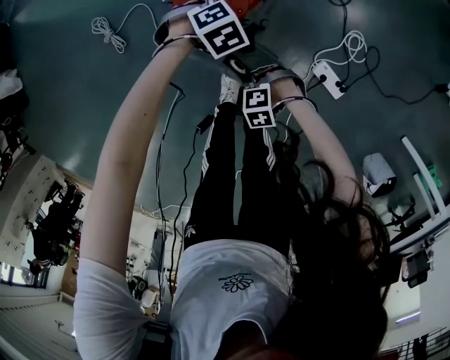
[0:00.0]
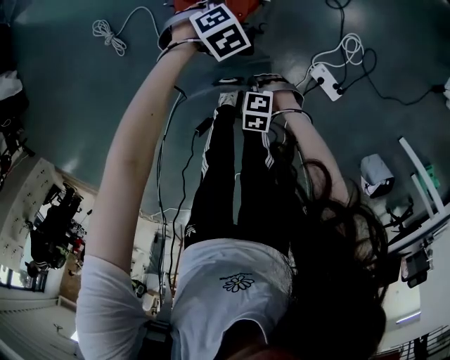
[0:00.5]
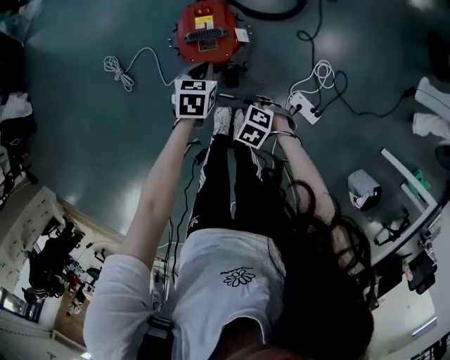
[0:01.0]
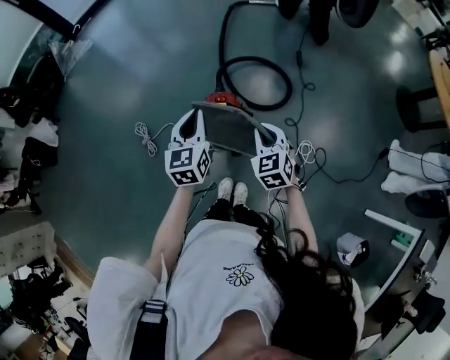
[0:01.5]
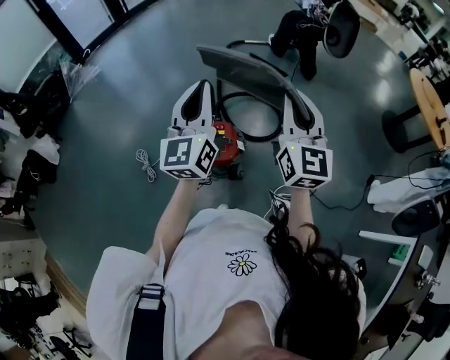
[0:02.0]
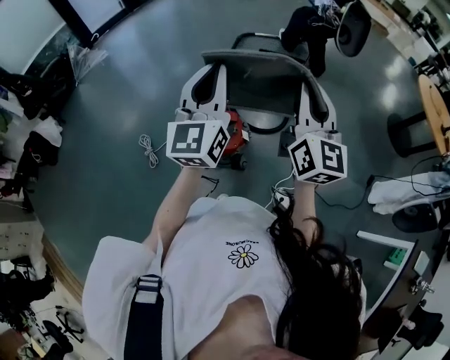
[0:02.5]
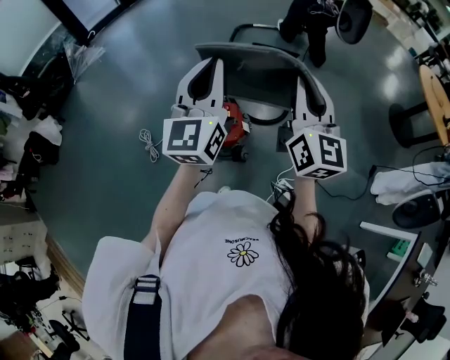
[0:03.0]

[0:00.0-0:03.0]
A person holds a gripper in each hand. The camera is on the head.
0.0 to 1.5 s: Both grippers move upward, some 50 cm. The left gripper tips its fingers upward by approximately 60 degrees. Meanwhile the right gripper tilts its fingers about 40 degrees upward.
1.5 to 3.0 s: The grippers both shift upward by some 30 cm. The right gripper points its fingers some 50 degrees further upward. Meanwhile the left gripper angles its fingers upward, by approximately 30 degrees.

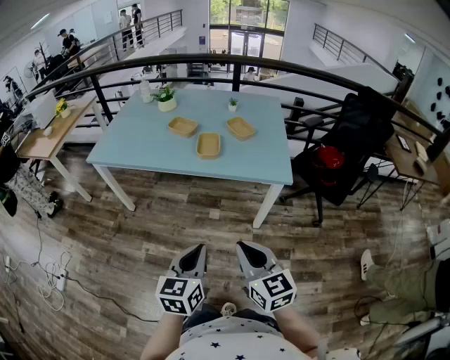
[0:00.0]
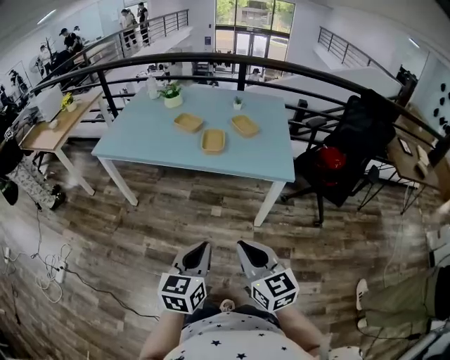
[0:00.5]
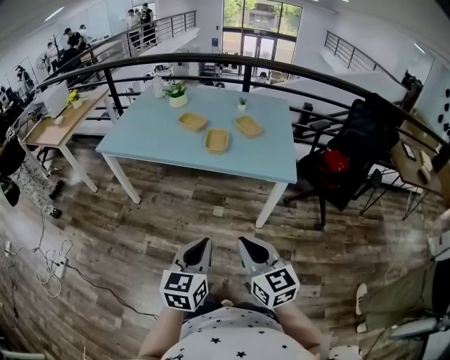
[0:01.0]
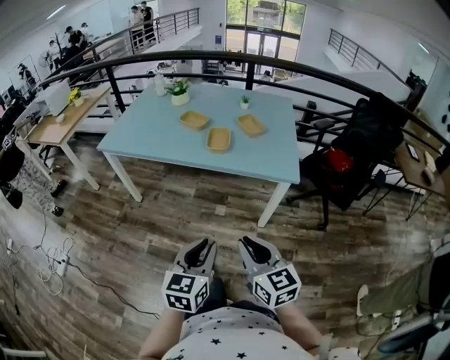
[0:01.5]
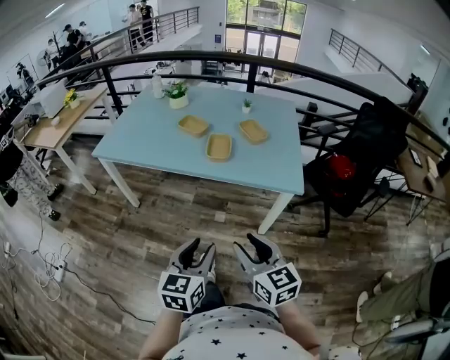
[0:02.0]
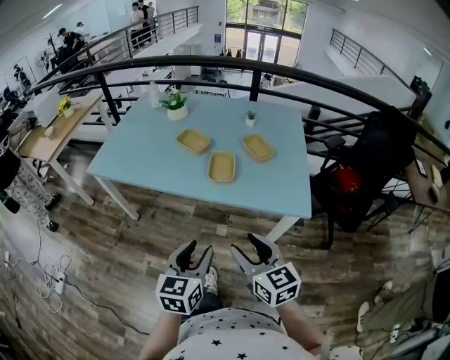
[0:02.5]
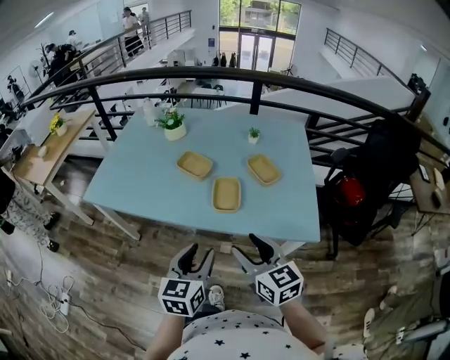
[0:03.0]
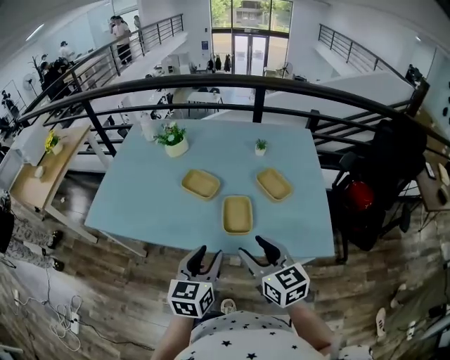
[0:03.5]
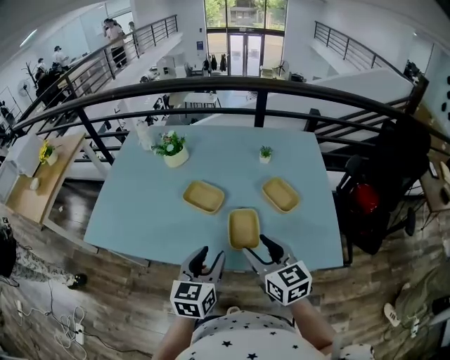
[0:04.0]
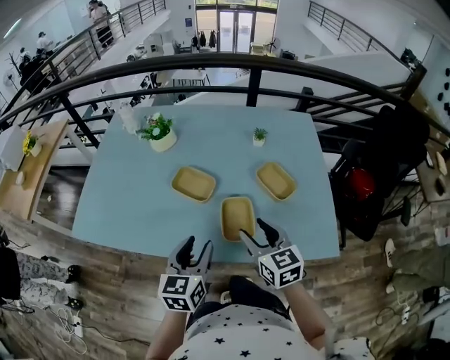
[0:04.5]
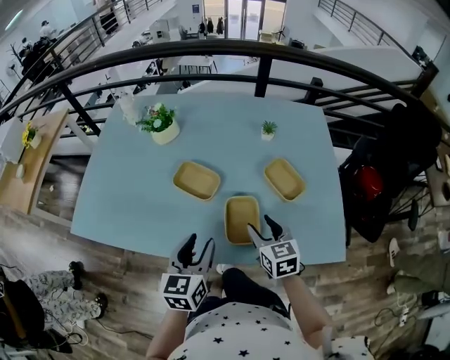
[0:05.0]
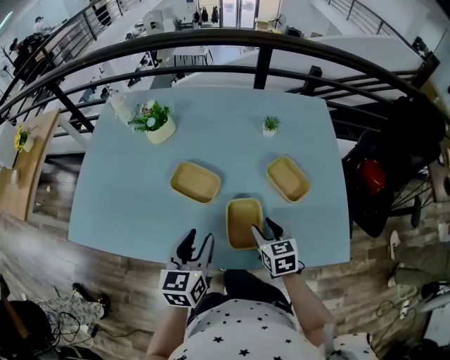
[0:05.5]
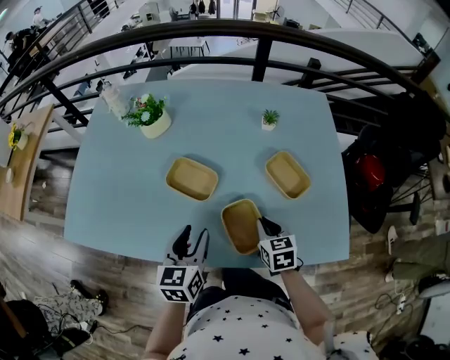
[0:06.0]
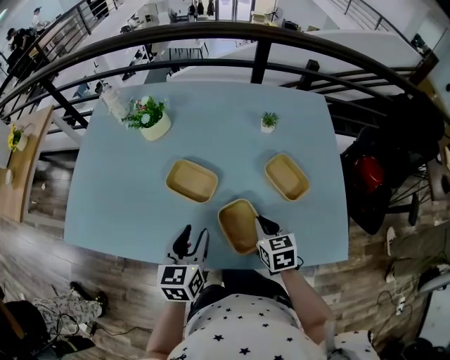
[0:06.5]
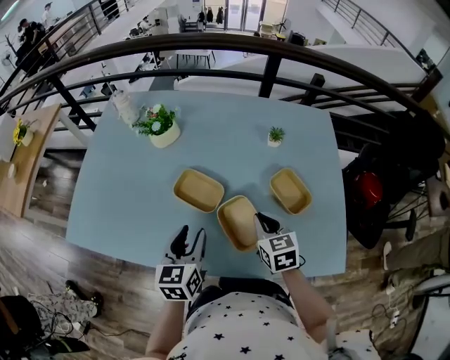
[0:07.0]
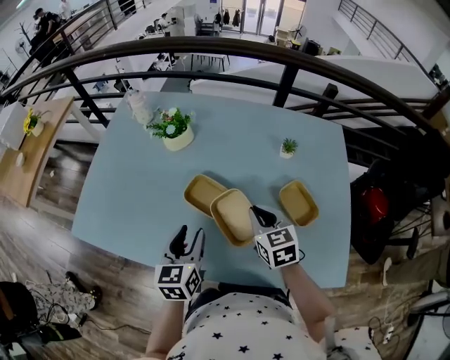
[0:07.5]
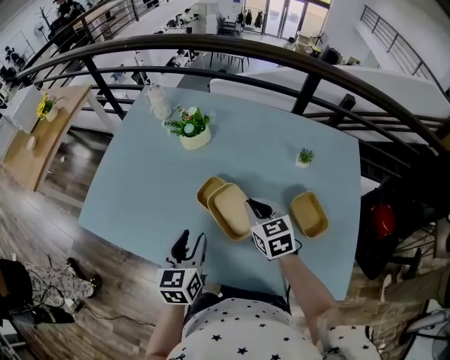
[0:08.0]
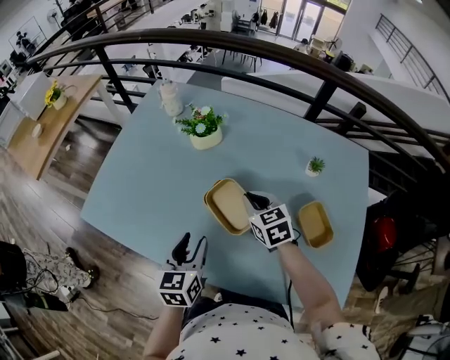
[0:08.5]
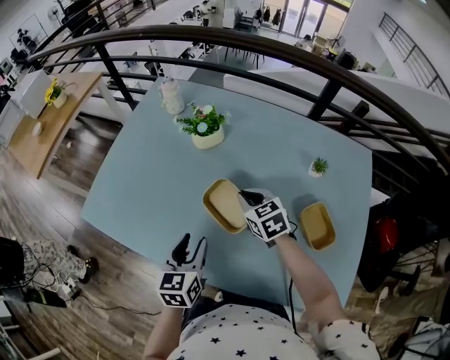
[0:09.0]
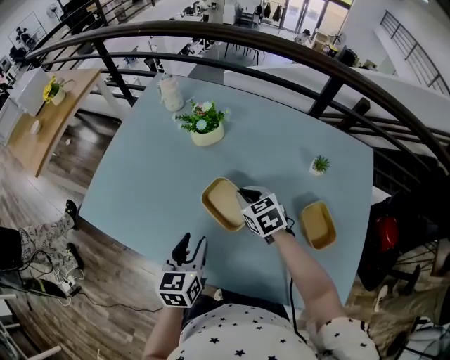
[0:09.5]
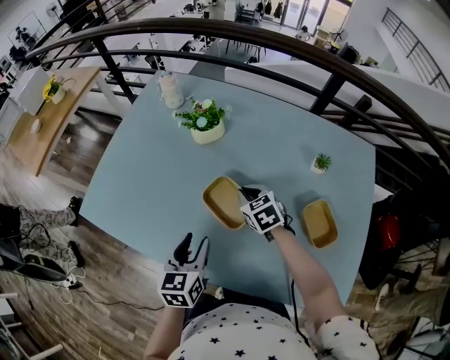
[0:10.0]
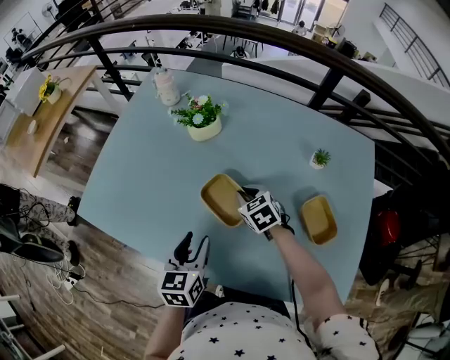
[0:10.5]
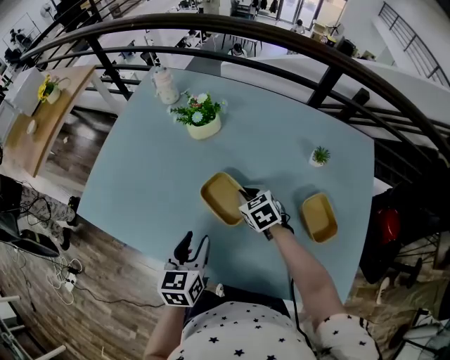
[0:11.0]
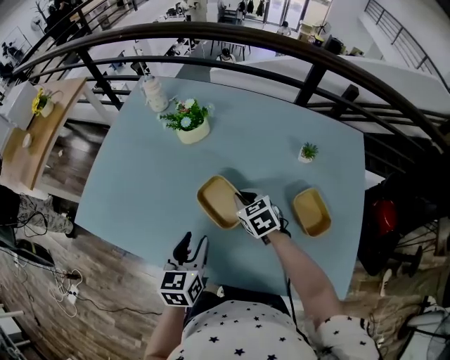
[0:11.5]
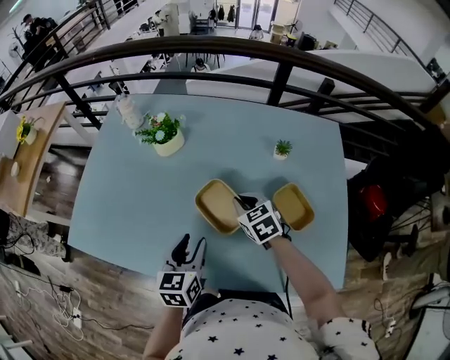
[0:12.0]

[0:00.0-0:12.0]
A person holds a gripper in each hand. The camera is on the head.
0.0 to 2.0 s: The right gripper shifts roughly 5 cm forward, and opens its fingers. The left gripper opens up.
2.0 to 4.0 s: The two grippers travel together, forward, some 40 cm.
4.0 to 6.0 s: The left gripper is displaced forward and downward by some 15 cm. The right gripper travels downward and forward by approximately 20 cm, changes its angle by roughly 30 degrees, and closes up.
6.0 to 8.0 s: The left gripper is displaced to the left by about 5 cm. The right gripper travels forward, to the left and upward by some 20 cm, and rotates about 20 degrees.
8.0 to 10.0 s: The right gripper goes roughly 10 cm downward and forward.
10.0 to 12.0 s: The right gripper travels to the right and backward by about 10 cm; the left gripper moves to the right, some 5 cm.

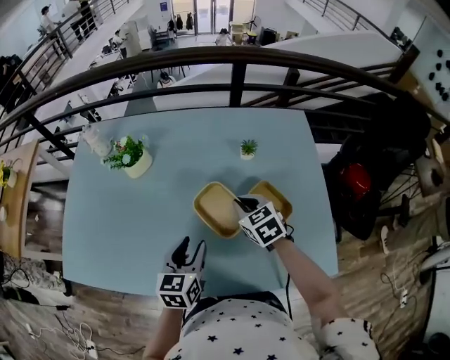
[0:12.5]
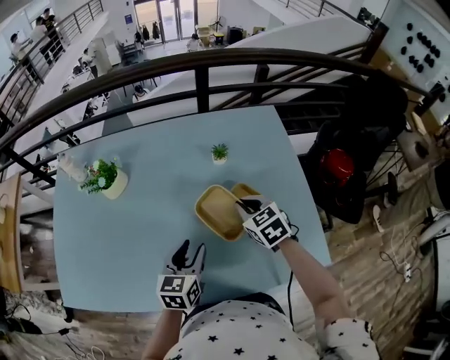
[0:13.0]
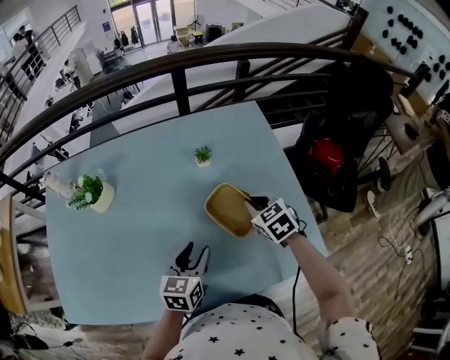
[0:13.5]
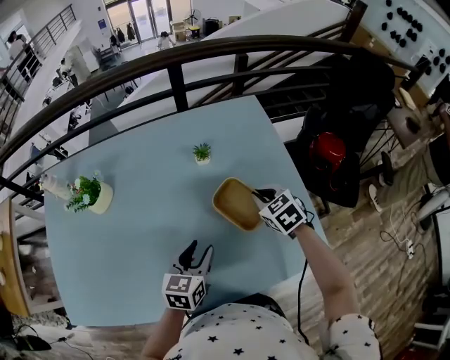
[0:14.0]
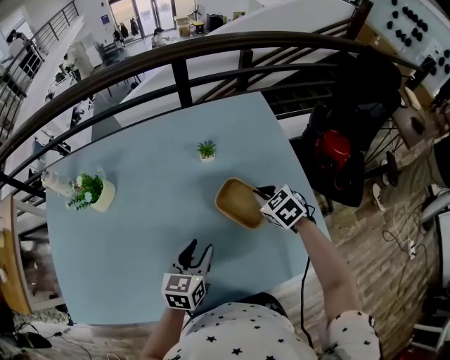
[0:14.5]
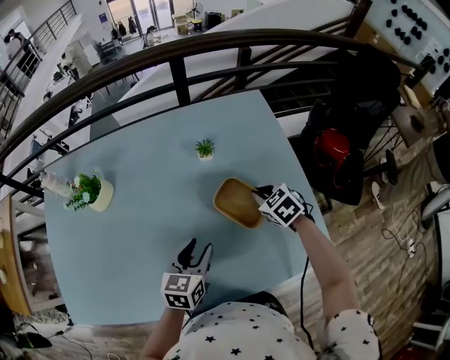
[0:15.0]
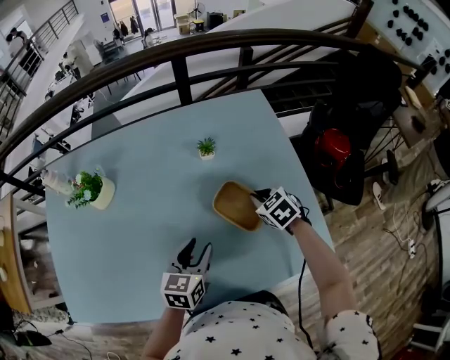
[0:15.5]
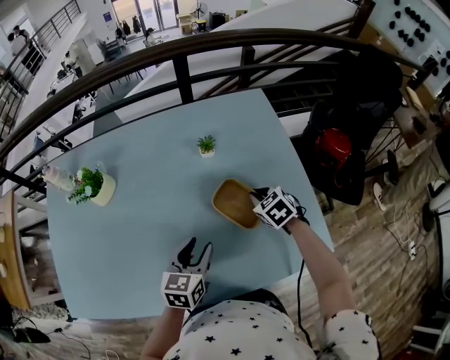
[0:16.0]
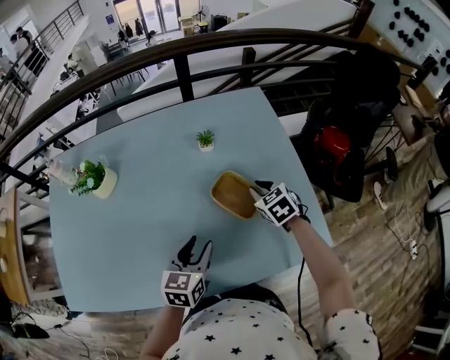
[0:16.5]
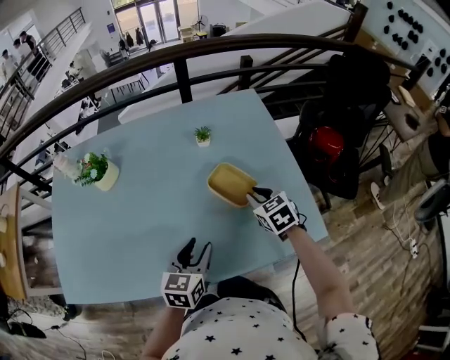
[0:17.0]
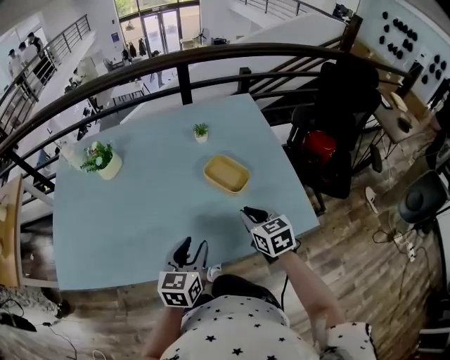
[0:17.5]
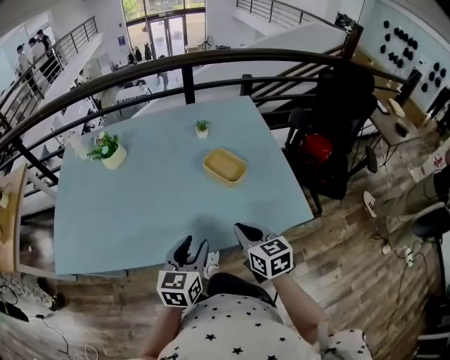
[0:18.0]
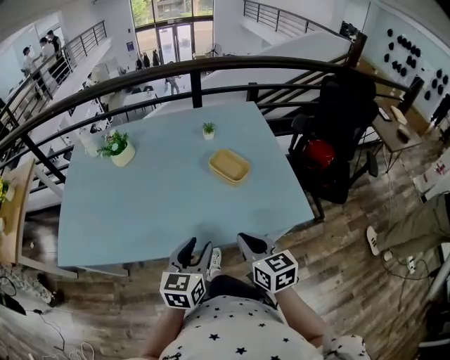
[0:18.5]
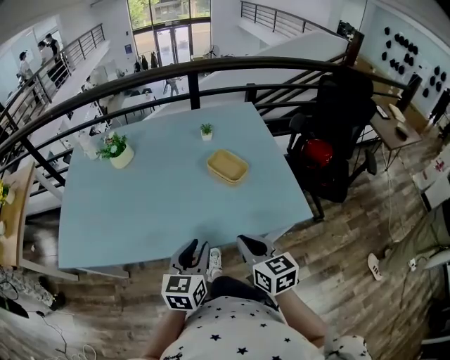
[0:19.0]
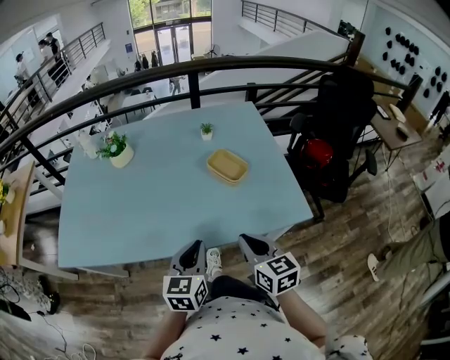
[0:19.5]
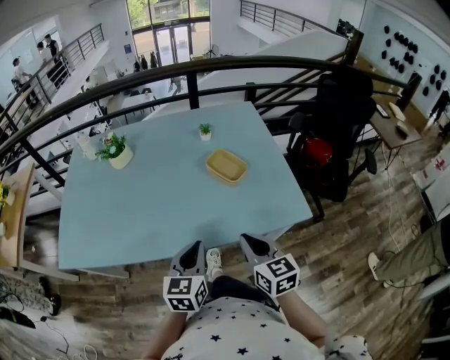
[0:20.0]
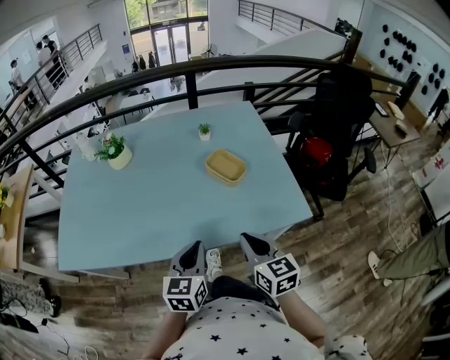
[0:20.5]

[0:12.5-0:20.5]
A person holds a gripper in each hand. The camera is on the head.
12.5 to 14.5 s: The right gripper heads to the right, covering some 15 cm; the left gripper goes approximately 10 cm to the right, and turns by about 20 degrees.
14.5 to 16.5 s: There are only small adjustments of the grippers.
16.5 to 18.5 s: The right gripper travels backward by some 35 cm, and turns by about 30 degrees. Meanwhile the left gripper shifts approximately 20 cm backward.
18.5 to 20.5 s: The left gripper closes up.

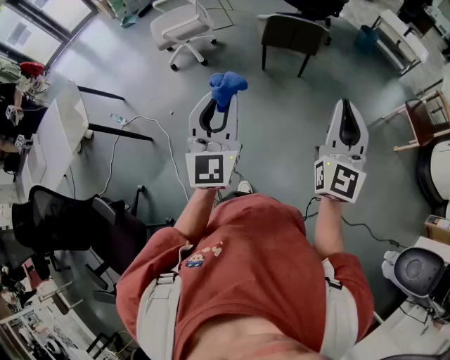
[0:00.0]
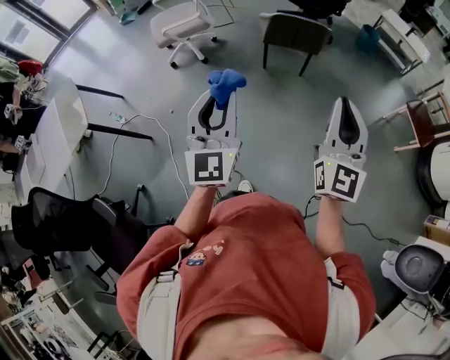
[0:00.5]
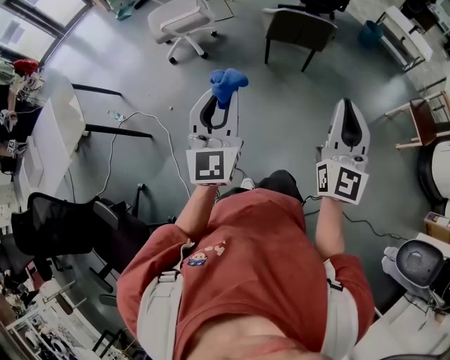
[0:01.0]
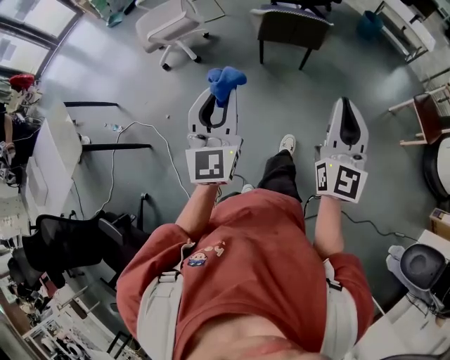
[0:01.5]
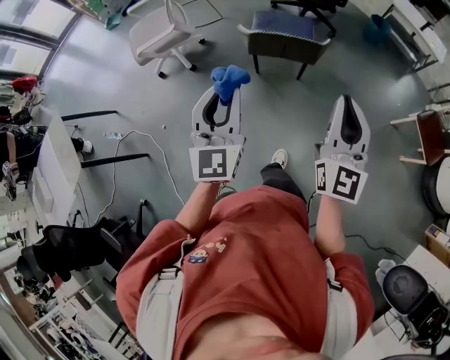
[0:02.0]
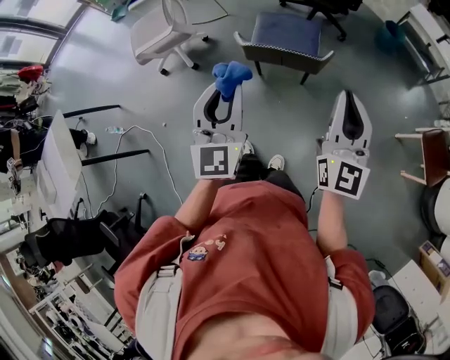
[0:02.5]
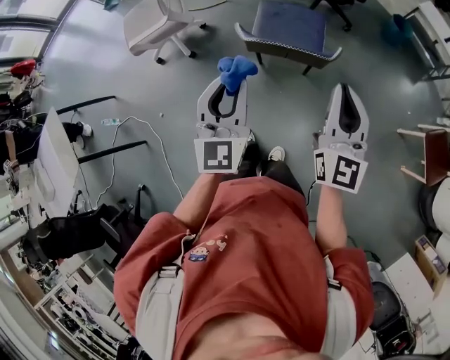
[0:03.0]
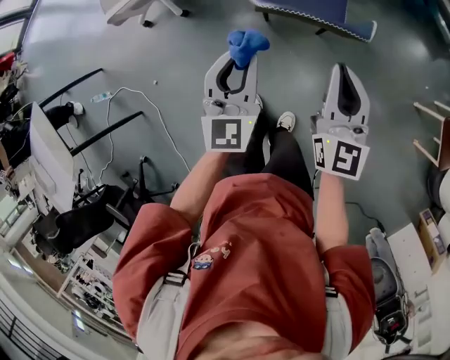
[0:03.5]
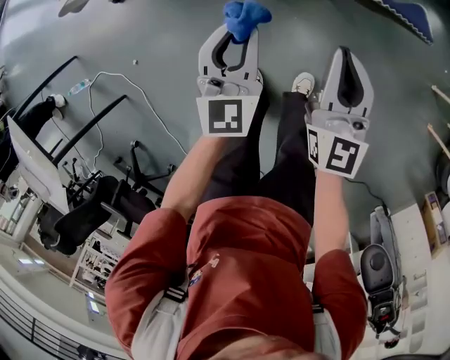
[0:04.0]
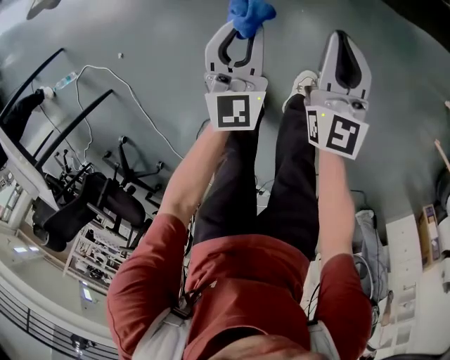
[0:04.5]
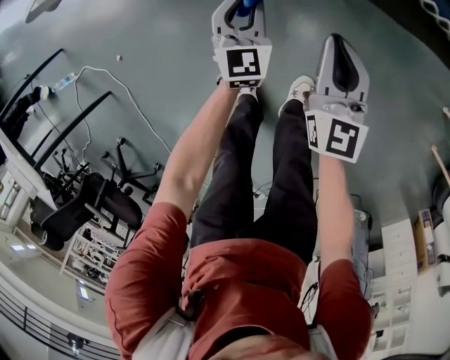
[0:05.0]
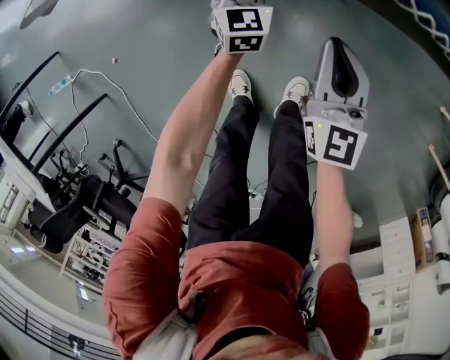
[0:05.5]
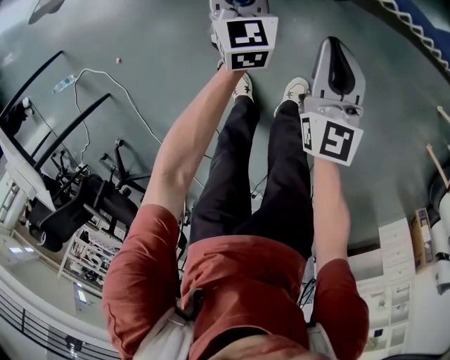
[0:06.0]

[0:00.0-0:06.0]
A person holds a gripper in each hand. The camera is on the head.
0.0 to 2.0 s: Both grippers move forward, roughly 35 cm.
2.0 to 4.0 s: Both grippers move downward and forward, about 50 cm. The left gripper rotates about 20 degrees; the right gripper changes its angle by some 20 degrees.
4.0 to 6.0 s: The right gripper is displaced downward by roughly 15 cm; the left gripper heads downward and forward, covering about 25 cm.
